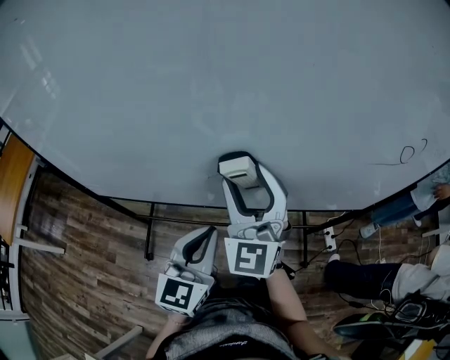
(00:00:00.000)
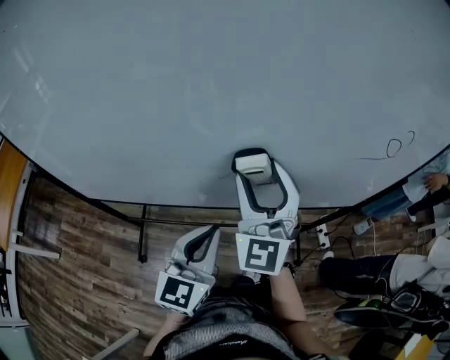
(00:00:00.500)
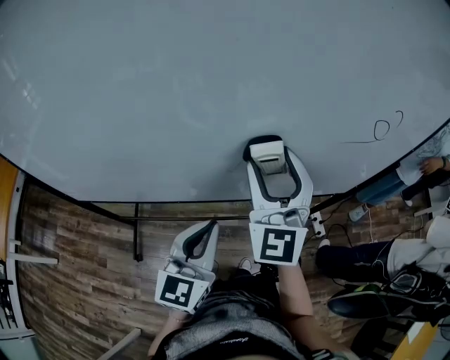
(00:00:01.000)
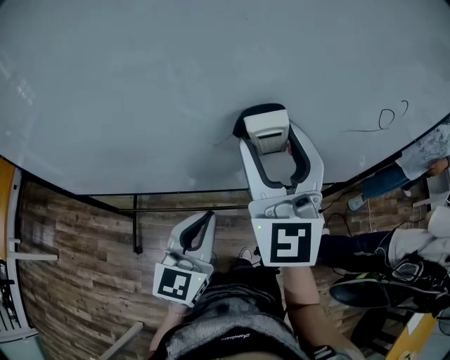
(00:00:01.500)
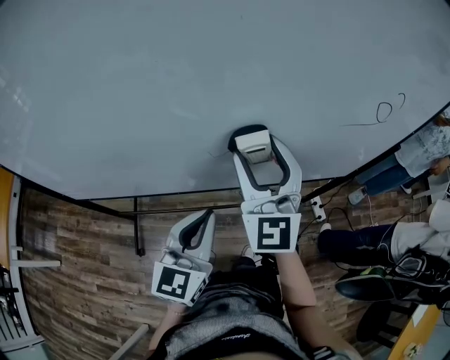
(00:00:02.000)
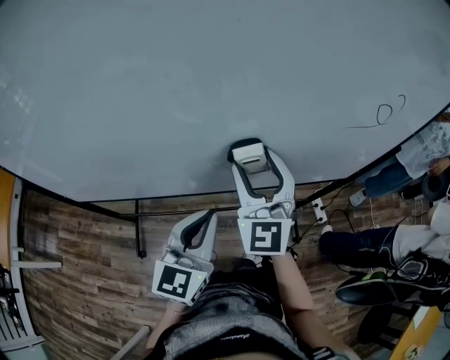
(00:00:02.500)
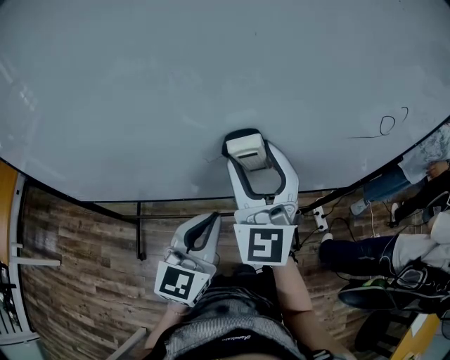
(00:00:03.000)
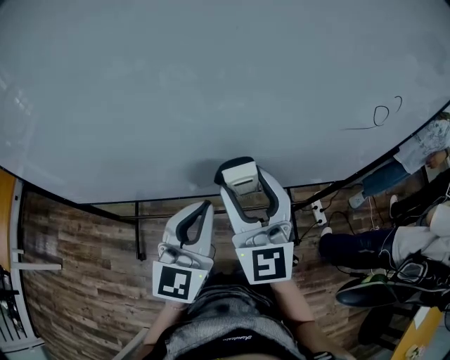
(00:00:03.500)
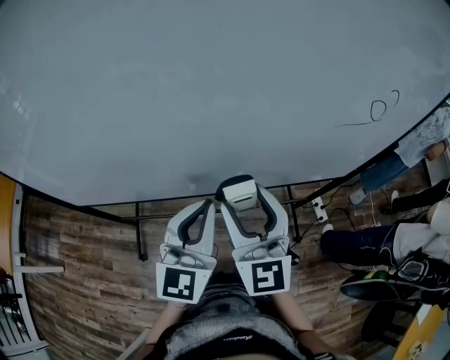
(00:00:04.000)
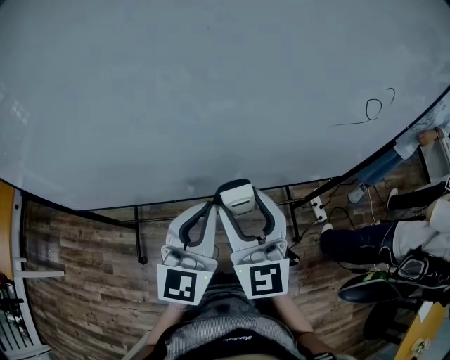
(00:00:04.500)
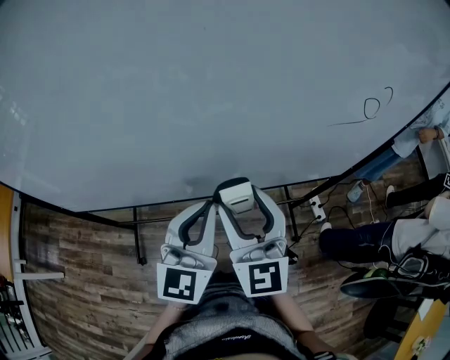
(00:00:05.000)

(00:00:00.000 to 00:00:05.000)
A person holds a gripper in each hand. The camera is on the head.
00:00:00.000 - 00:00:02.500: The right gripper heads to the right, covering roughly 10 cm, while the left gripper moves to the right, approximately 5 cm.
00:00:02.500 - 00:00:05.000: The right gripper goes roughly 5 cm backward.

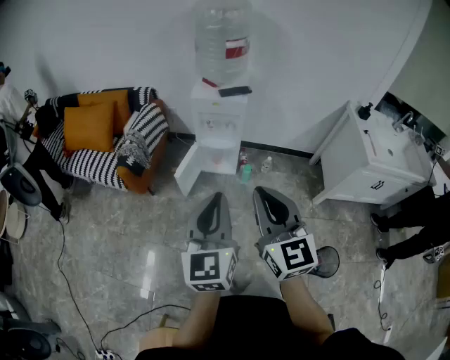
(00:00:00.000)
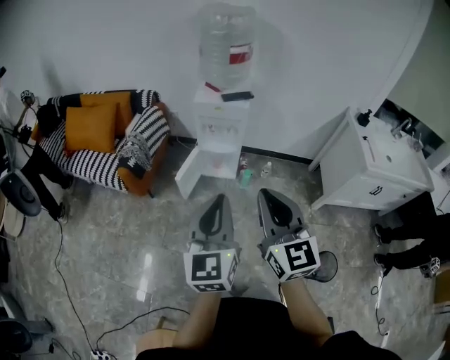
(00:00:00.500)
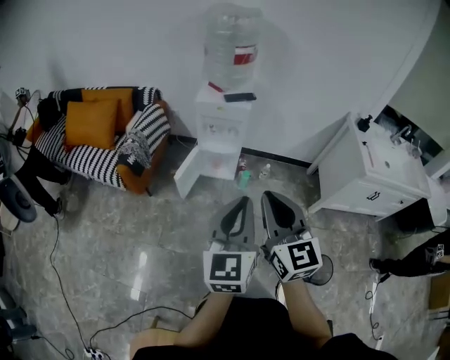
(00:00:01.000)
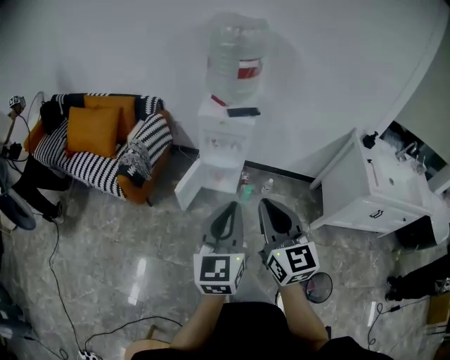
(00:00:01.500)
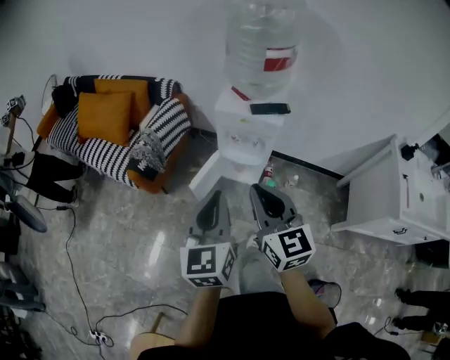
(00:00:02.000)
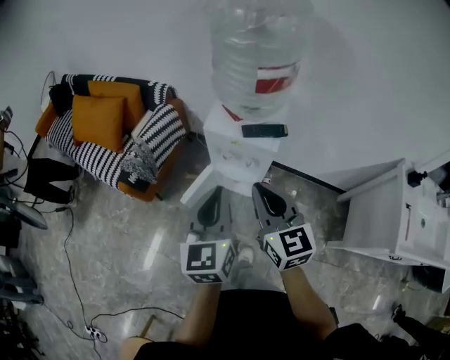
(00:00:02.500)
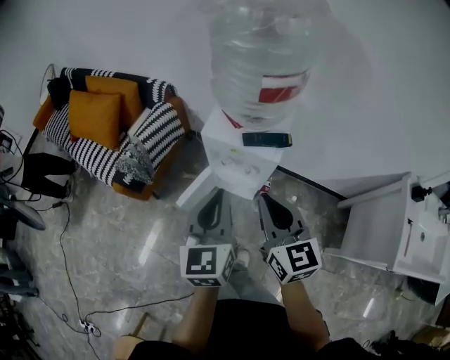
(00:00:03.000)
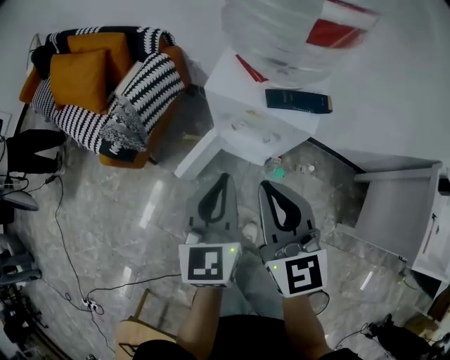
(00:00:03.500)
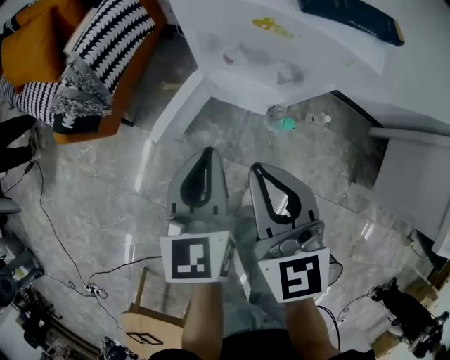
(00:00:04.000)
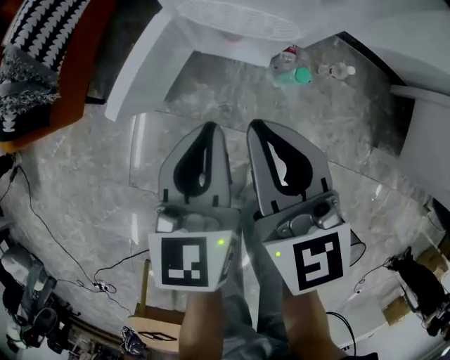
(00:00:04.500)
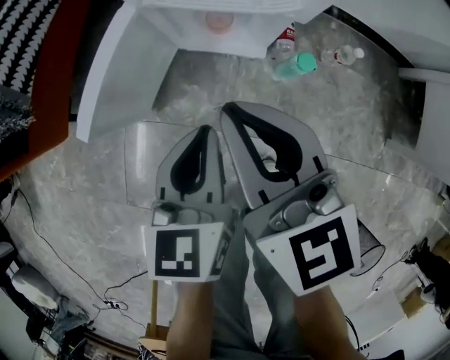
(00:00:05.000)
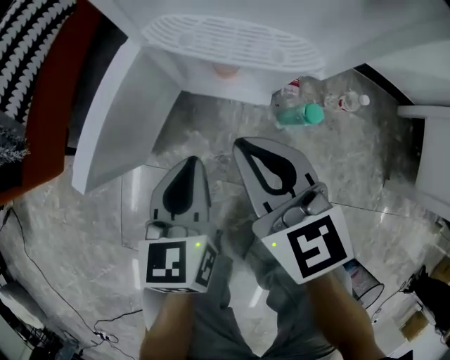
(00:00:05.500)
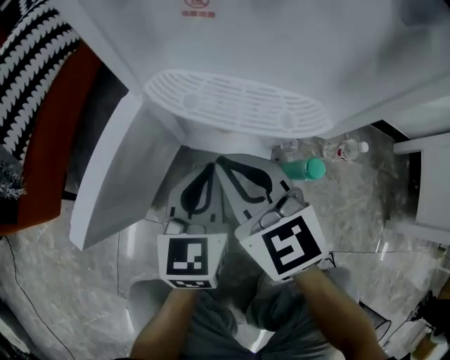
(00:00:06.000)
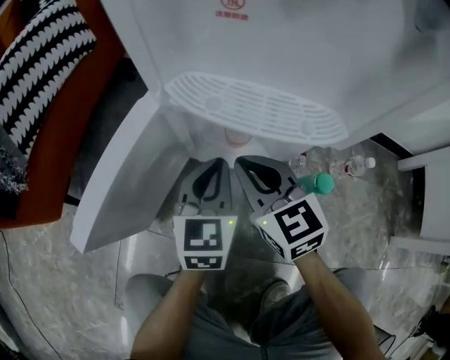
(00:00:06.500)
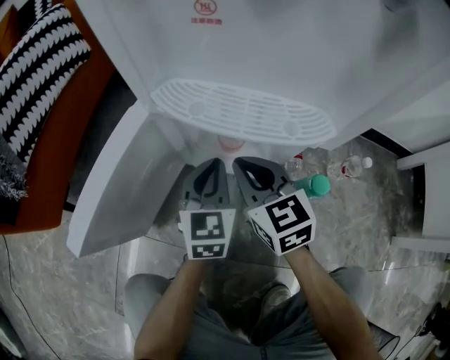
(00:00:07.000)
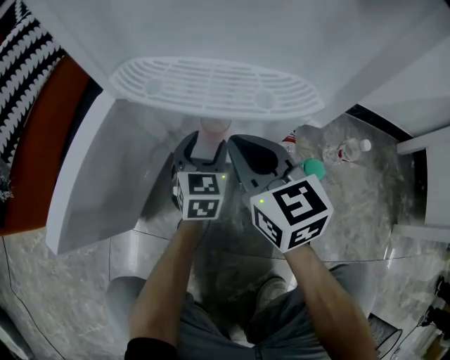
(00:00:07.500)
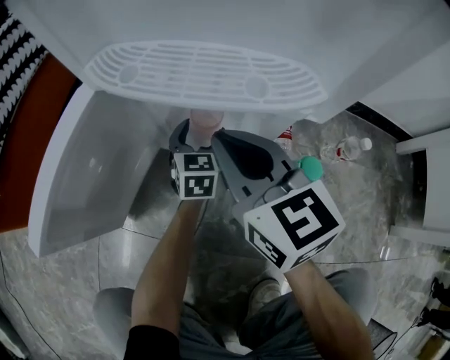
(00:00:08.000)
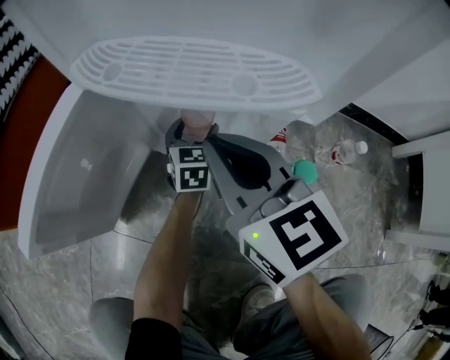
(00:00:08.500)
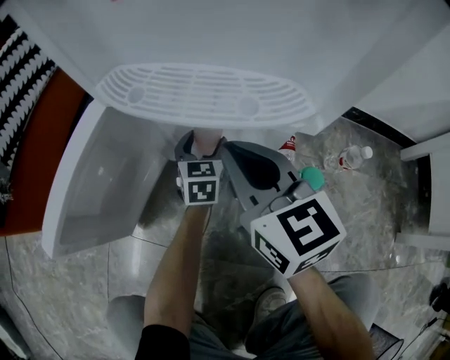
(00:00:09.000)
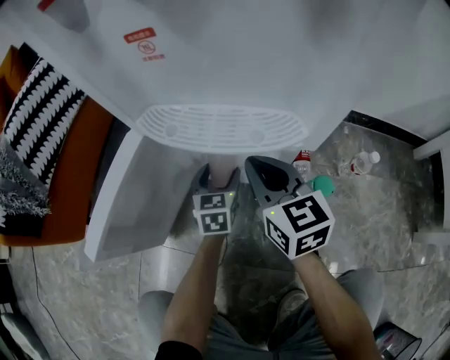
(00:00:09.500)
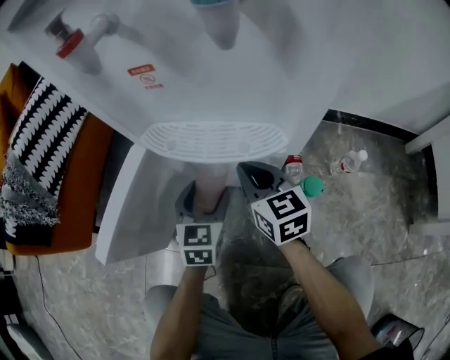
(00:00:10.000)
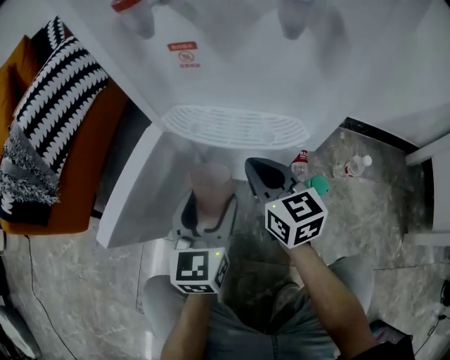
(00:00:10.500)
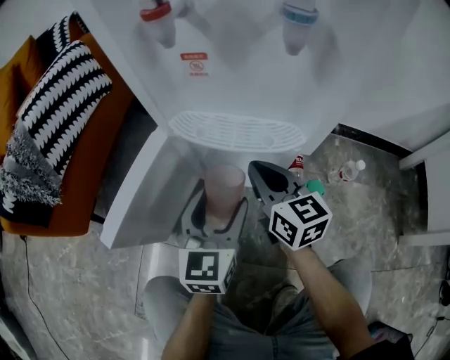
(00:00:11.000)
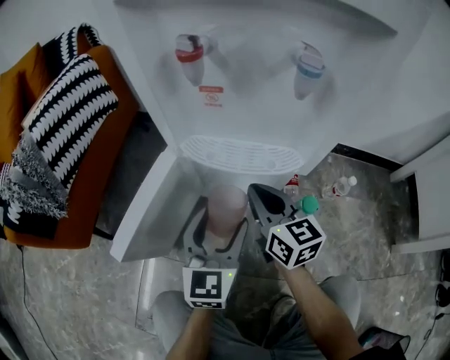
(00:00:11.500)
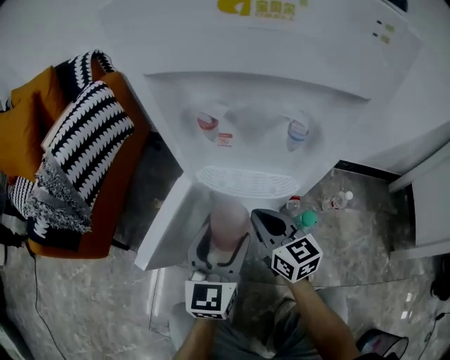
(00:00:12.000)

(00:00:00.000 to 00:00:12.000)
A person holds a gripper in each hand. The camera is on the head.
00:00:00.000 - 00:00:02.000: Both grippers travel together forward, some 25 cm.
00:00:02.000 - 00:00:04.000: The grippers both shift downward and forward by approximately 35 cm.
00:00:04.000 - 00:00:06.000: The grippers both shift downward by roughly 40 cm.
00:00:06.000 - 00:00:08.000: The left gripper shifts about 25 cm downward and forward, and opens; the right gripper is displaced to the right by about 5 cm.
00:00:08.000 - 00:00:10.000: The left gripper heads upward, backward and to the left, covering about 15 cm.
00:00:10.000 - 00:00:12.000: The left gripper travels upward by approximately 20 cm. The right gripper is displaced upward and backward by about 10 cm.

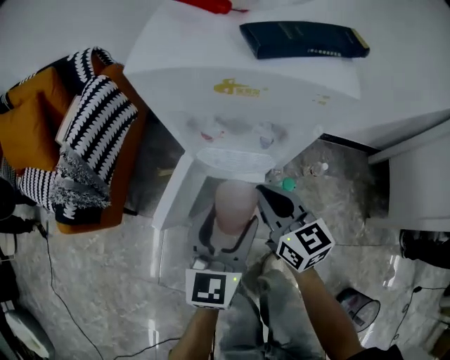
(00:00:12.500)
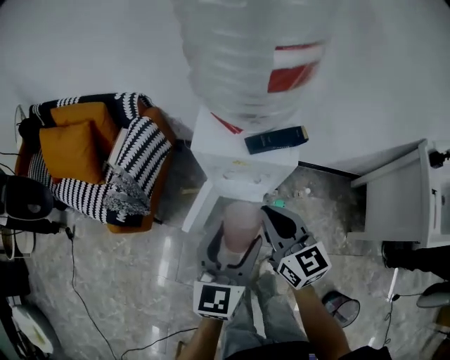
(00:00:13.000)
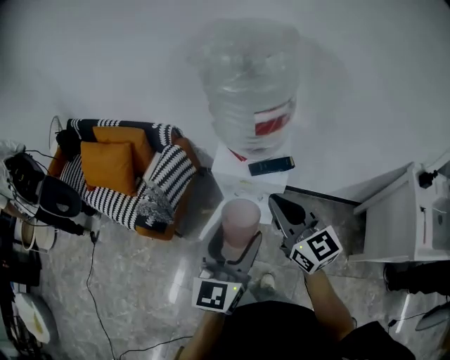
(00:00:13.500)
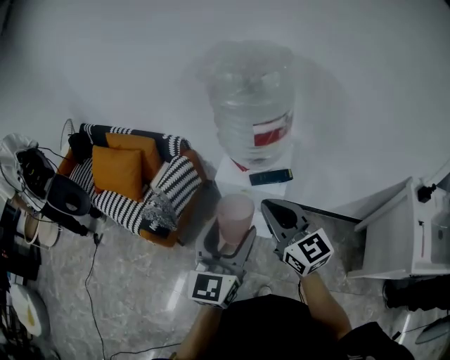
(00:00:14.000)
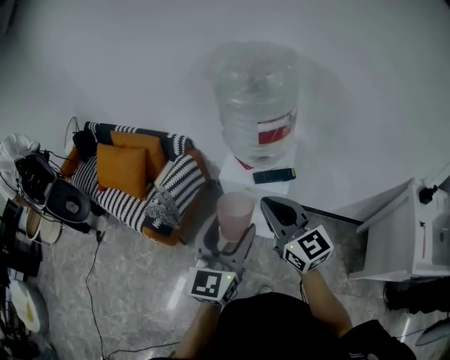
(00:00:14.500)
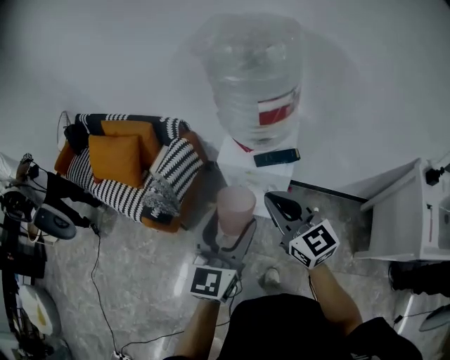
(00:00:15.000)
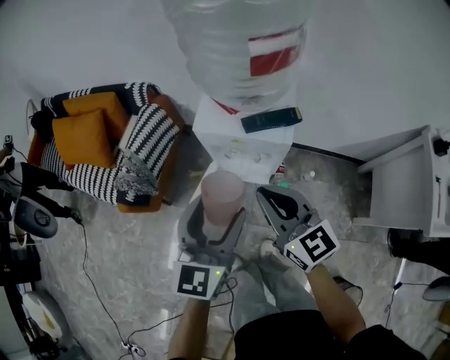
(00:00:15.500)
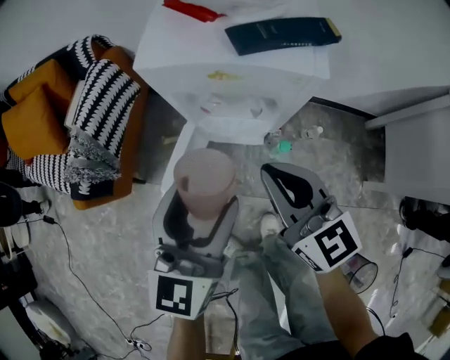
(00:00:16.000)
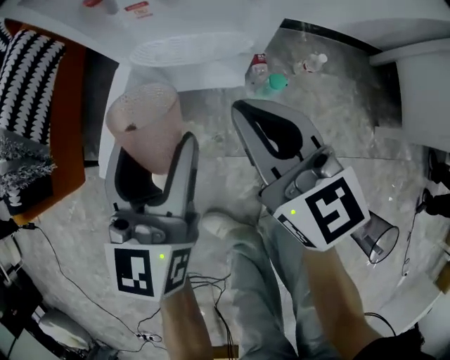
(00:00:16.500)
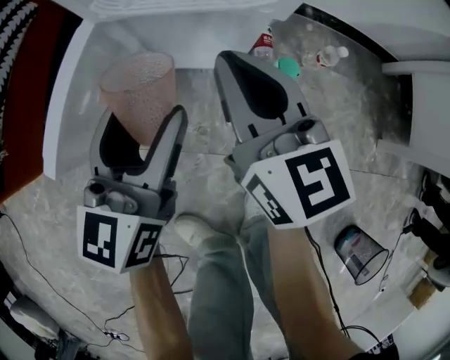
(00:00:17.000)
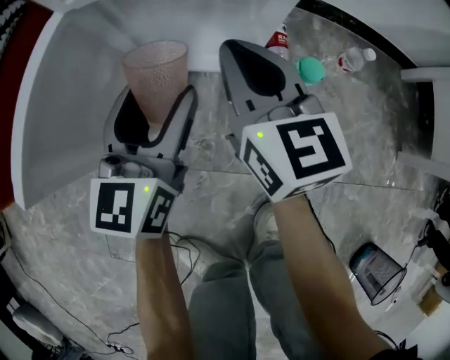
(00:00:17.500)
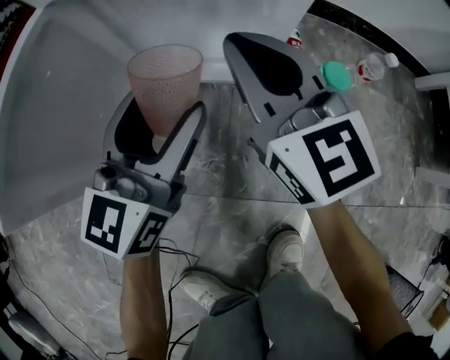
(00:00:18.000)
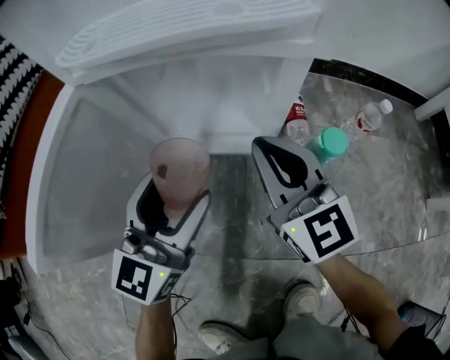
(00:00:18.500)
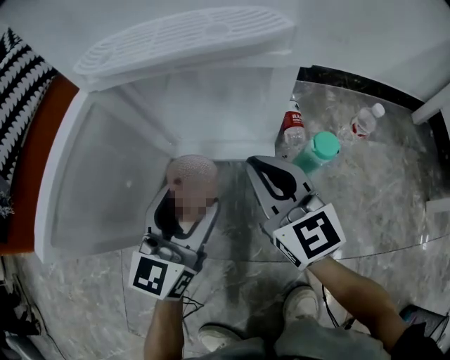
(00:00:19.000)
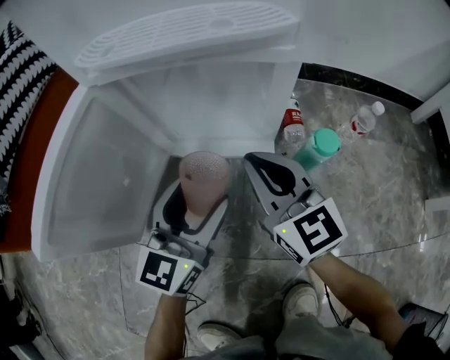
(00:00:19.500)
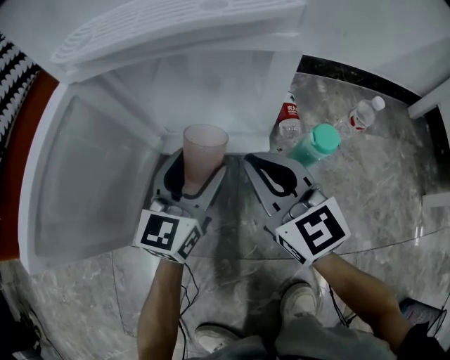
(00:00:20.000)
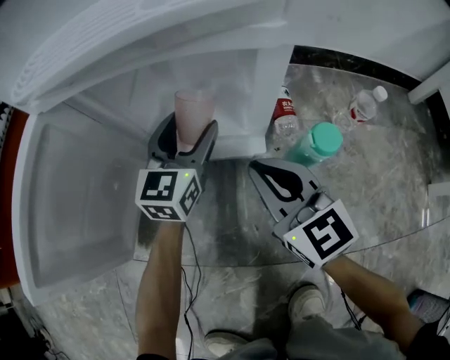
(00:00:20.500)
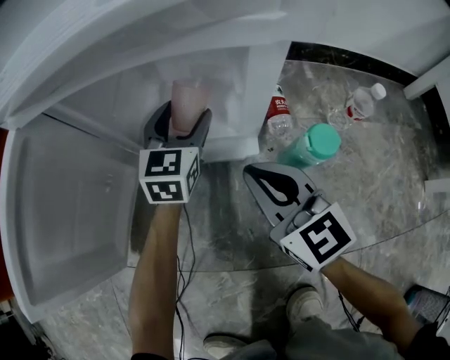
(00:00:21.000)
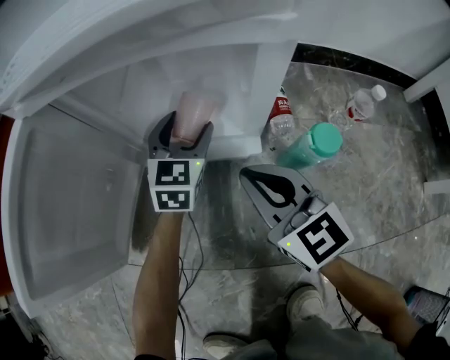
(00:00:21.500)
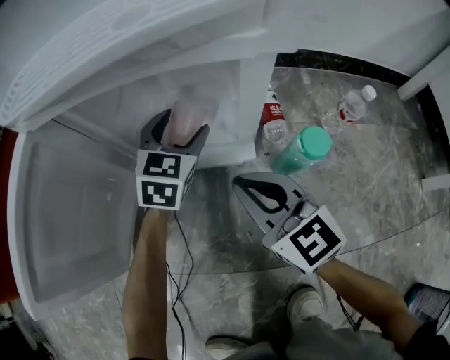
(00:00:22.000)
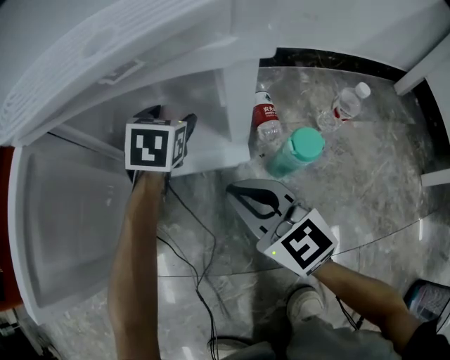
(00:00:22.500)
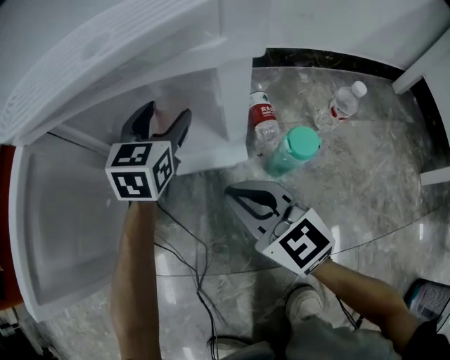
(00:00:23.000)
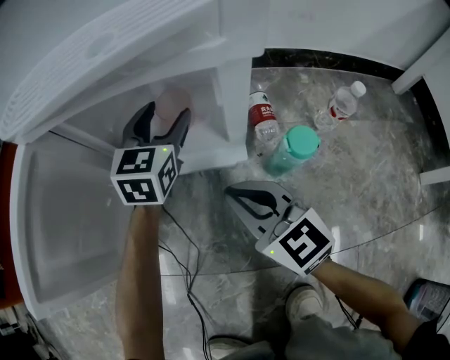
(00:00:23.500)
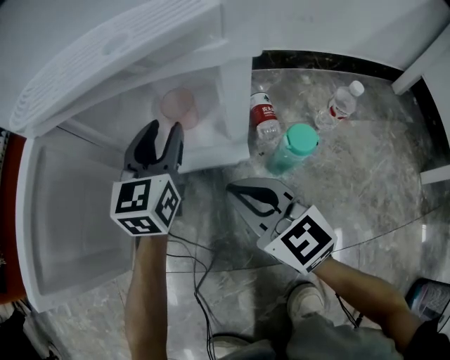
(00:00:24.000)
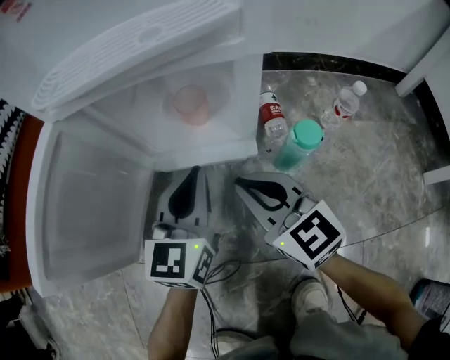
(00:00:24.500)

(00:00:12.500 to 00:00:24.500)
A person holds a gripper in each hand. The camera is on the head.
00:00:12.500 - 00:00:14.500: Both grippers travel together upward, roughly 50 cm. The right gripper turns by roughly 30 degrees, while the left gripper changes its angle by some 20 degrees.
00:00:14.500 - 00:00:16.500: Both grippers travel together downward, approximately 50 cm. The right gripper rotates approximately 30 degrees.
00:00:16.500 - 00:00:18.500: The two grippers go some 30 cm downward.
00:00:18.500 - 00:00:20.500: The left gripper is displaced forward and downward by roughly 20 cm. Meanwhile the right gripper heads downward, covering approximately 5 cm.
00:00:20.500 - 00:00:22.500: The left gripper travels forward by approximately 5 cm, and tips its fingers downward by about 30 degrees.
00:00:22.500 - 00:00:24.500: The left gripper is displaced backward and upward by approximately 20 cm, points its fingers about 30 degrees further upward, and closes its fingers.
